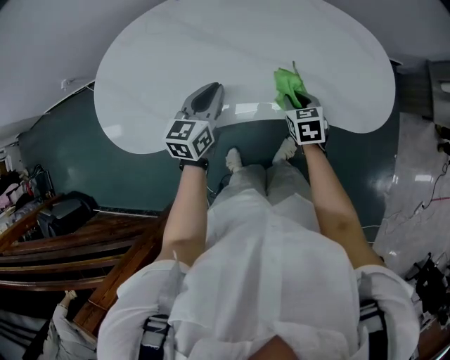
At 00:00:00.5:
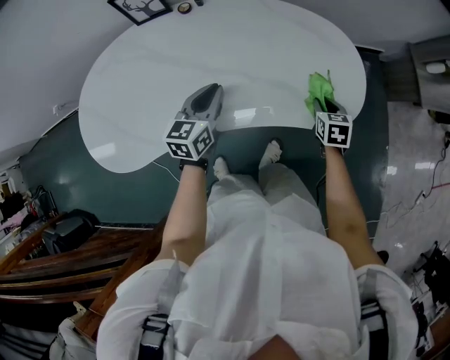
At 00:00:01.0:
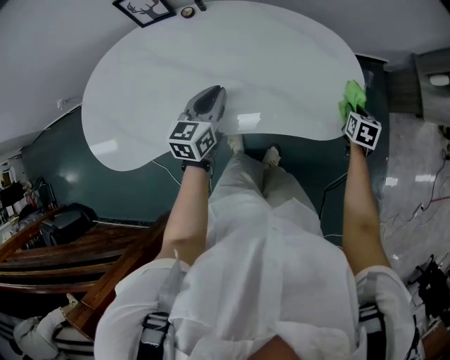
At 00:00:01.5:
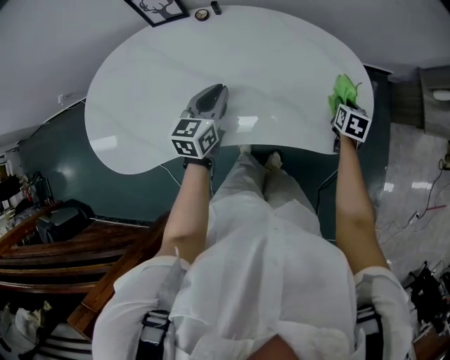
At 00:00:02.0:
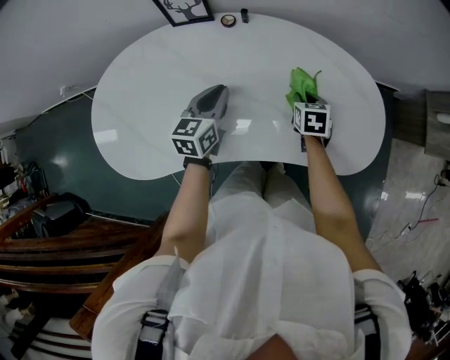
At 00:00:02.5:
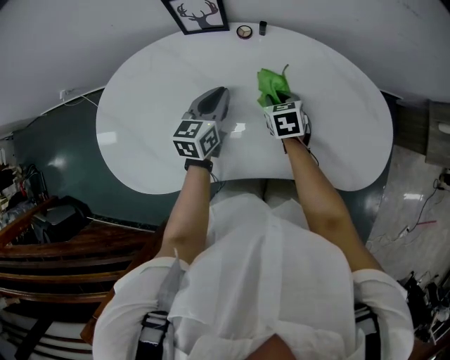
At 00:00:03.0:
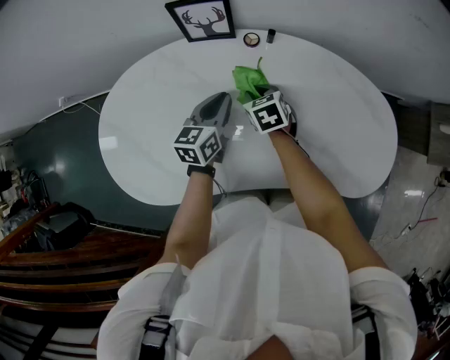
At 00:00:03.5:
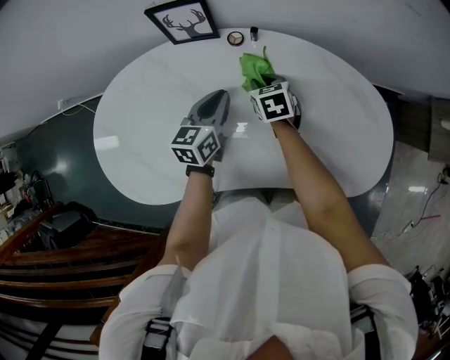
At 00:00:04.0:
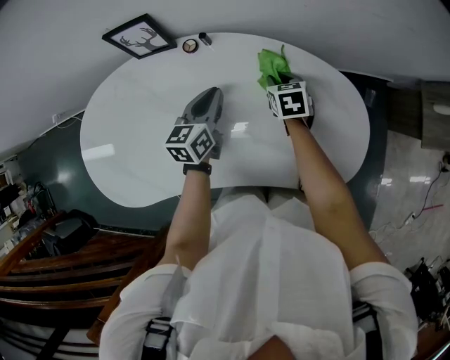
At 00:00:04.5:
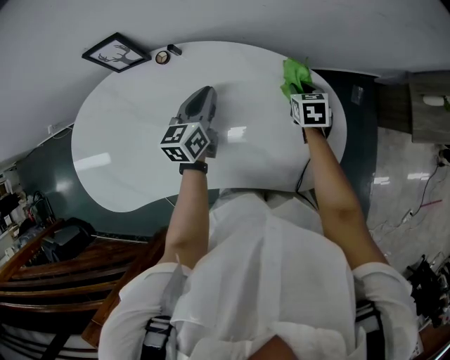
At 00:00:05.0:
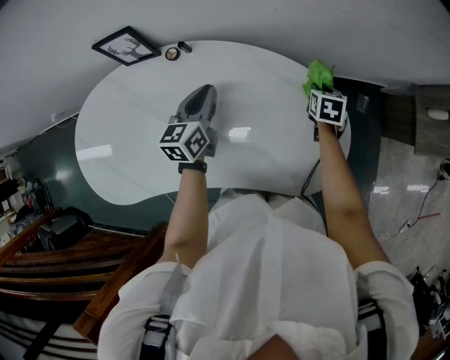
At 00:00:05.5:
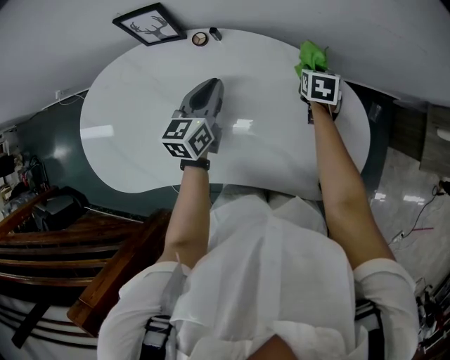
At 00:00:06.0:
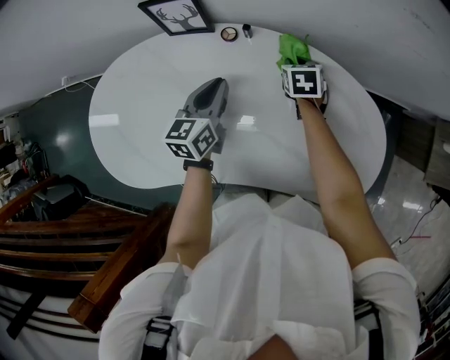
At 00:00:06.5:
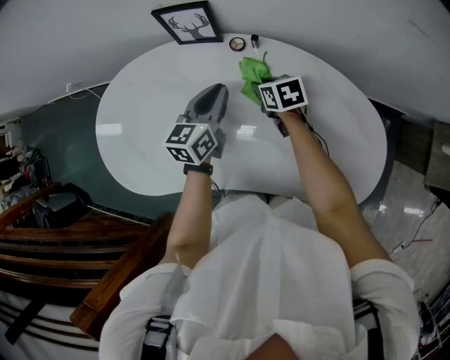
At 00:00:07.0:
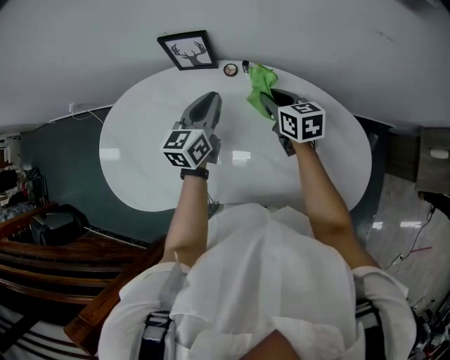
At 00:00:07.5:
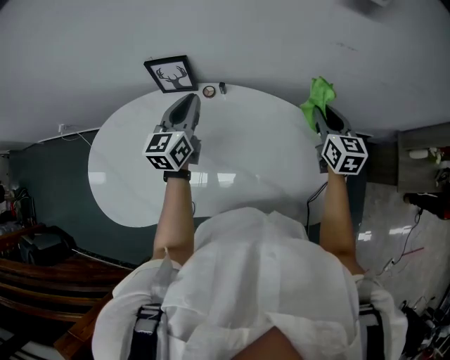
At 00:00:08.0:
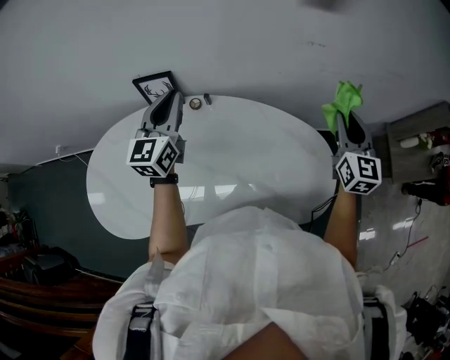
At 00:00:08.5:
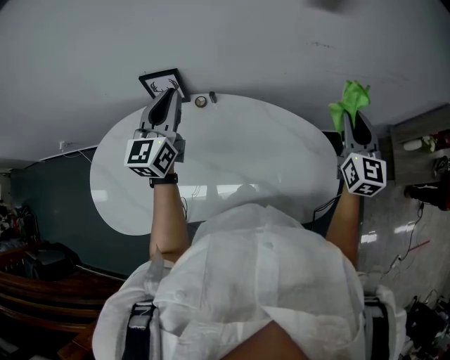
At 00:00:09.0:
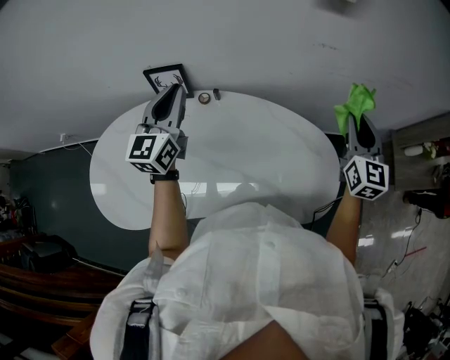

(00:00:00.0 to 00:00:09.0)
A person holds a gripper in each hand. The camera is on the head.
00:00:00.0 - 00:00:02.0: Both grippers move forward, some 15 cm. The left gripper travels to the right and back again, some 15 cm each way. The right gripper travels to the right and back again, approximately 35 cm each way.
00:00:02.0 - 00:00:04.5: Both grippers move to the right and forward, some 20 cm.
00:00:04.5 - 00:00:07.0: The right gripper shifts by about 30 cm, and turns by approximately 30 degrees; the left gripper moves some 20 cm.
00:00:07.0 - 00:00:09.0: The left gripper heads upward, covering about 15 cm, and swivels roughly 20 degrees. The right gripper heads to the right and upward, covering some 40 cm, and rotates approximately 50 degrees.

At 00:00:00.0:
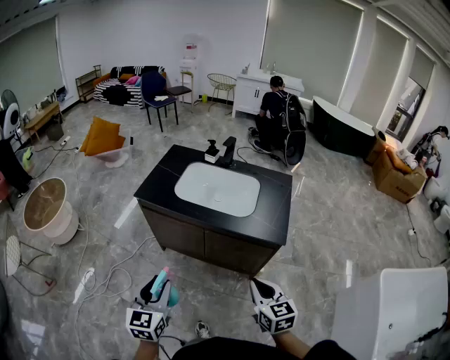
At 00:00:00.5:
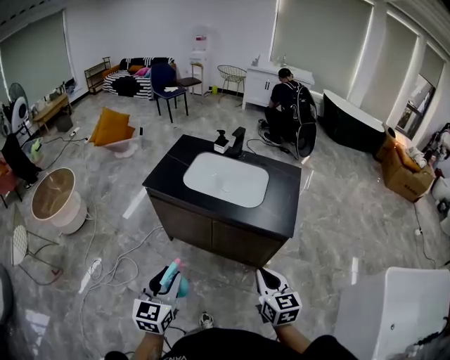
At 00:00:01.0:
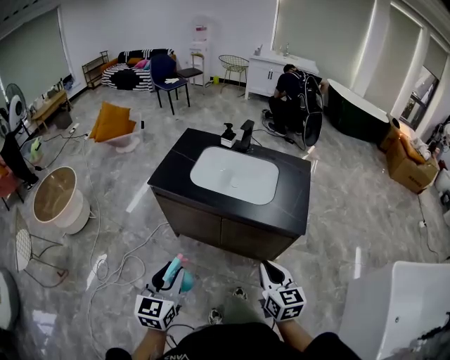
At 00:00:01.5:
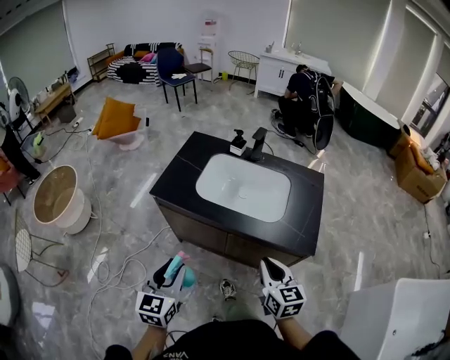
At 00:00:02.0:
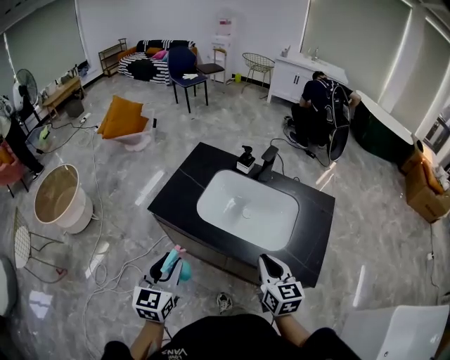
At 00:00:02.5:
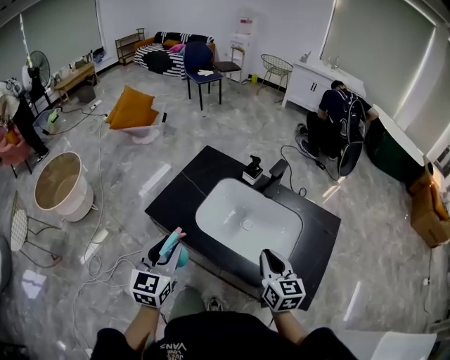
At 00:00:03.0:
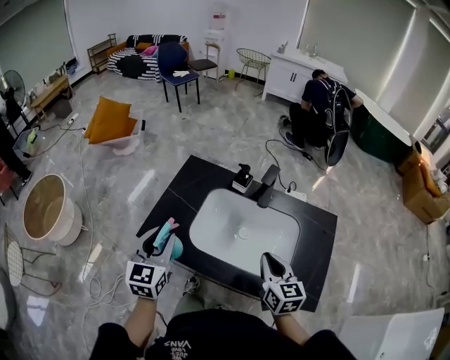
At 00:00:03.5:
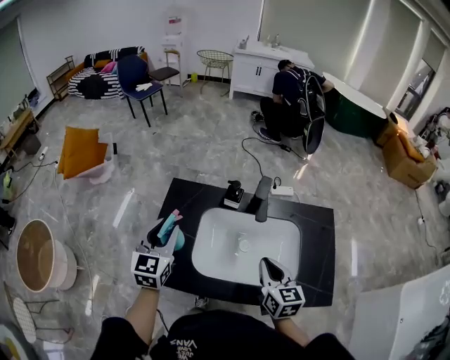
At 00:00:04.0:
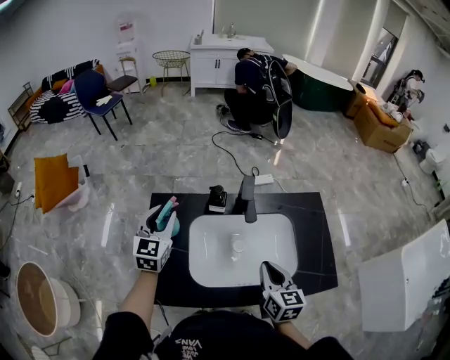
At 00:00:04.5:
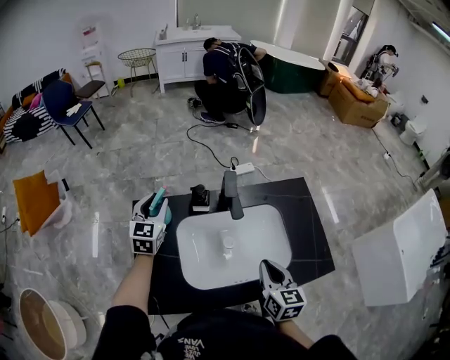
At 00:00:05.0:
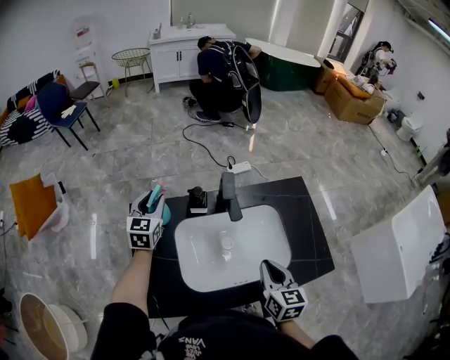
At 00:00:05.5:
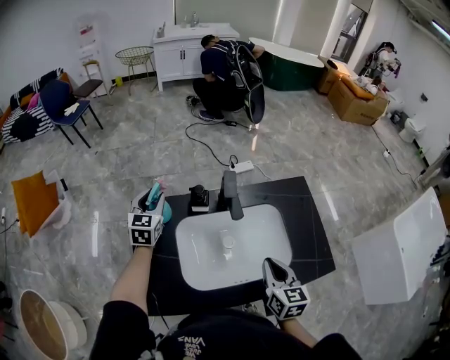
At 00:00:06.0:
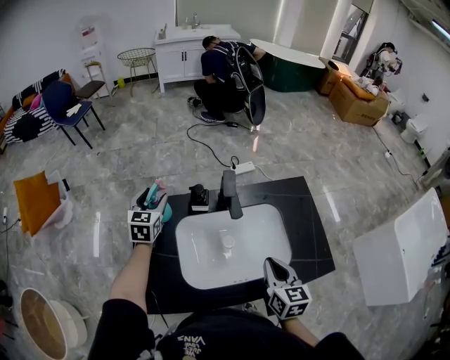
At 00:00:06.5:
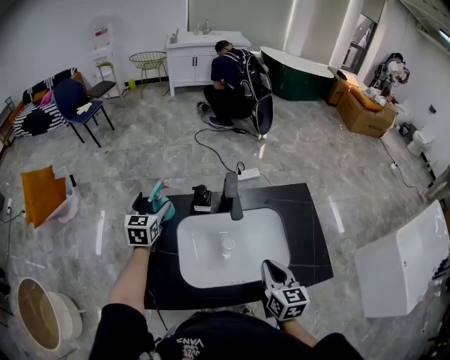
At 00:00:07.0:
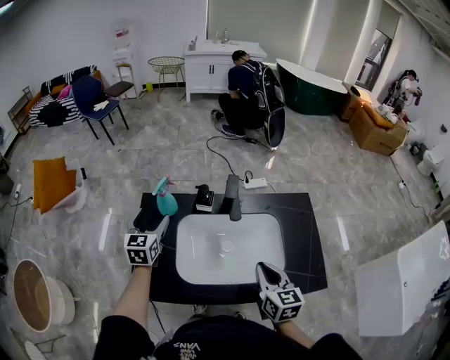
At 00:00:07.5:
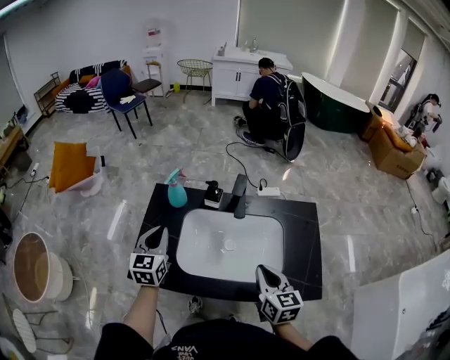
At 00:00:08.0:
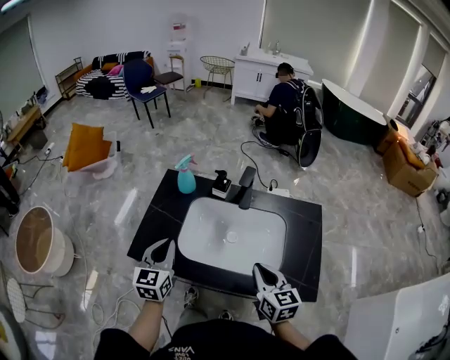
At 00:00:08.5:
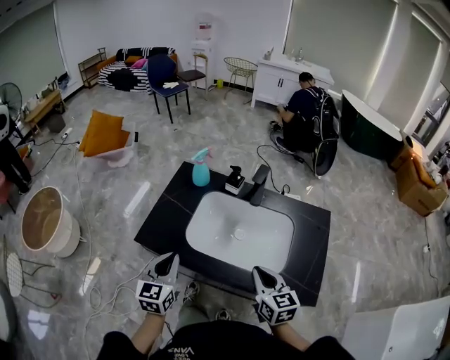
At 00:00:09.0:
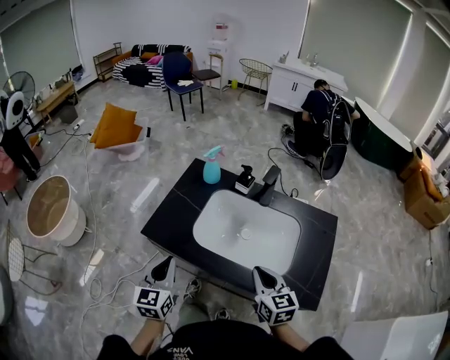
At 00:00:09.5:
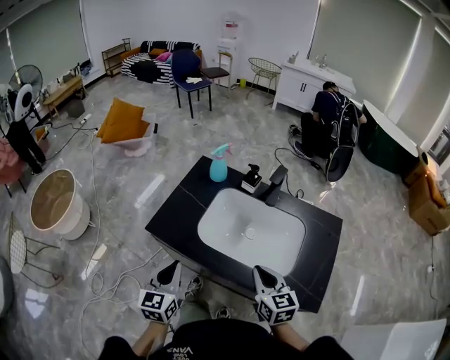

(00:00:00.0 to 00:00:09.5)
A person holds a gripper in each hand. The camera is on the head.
00:00:00.0 - 00:00:02.0: The grippers both shift forward by approximately 30 cm.
00:00:02.0 - 00:00:04.0: The left gripper ends up roughly 50 cm from where it was, and changes its angle by about 30 degrees, while the right gripper moves roughly 20 cm, and swivels approximately 30 degrees.
00:00:04.0 - 00:00:05.5: The left gripper heads forward and downward, covering about 15 cm.
00:00:05.5 - 00:00:07.5: The right gripper ends up roughly 5 cm from where it was, and swivels approximately 20 degrees. The left gripper travels backward by roughly 25 cm, and opens and closes again.
00:00:07.5 - 00:00:09.5: The left gripper moves backward, some 25 cm. The right gripper ends up approximately 5 cm from where it was, and changes its angle by about 20 degrees.

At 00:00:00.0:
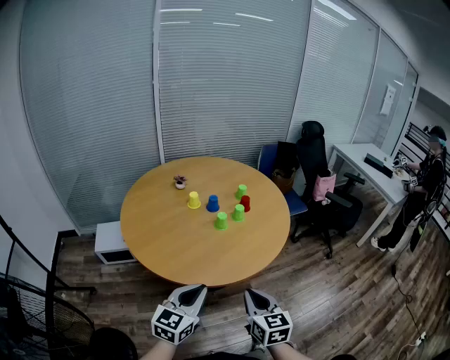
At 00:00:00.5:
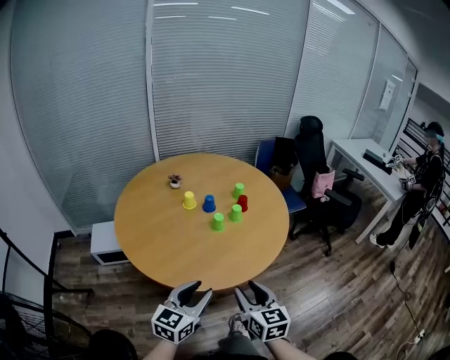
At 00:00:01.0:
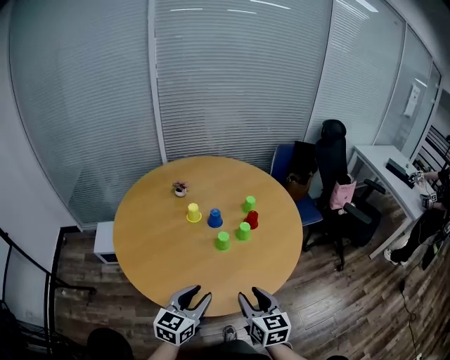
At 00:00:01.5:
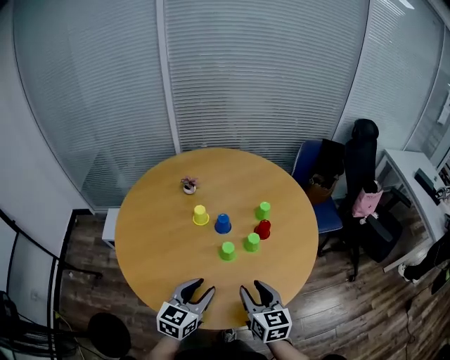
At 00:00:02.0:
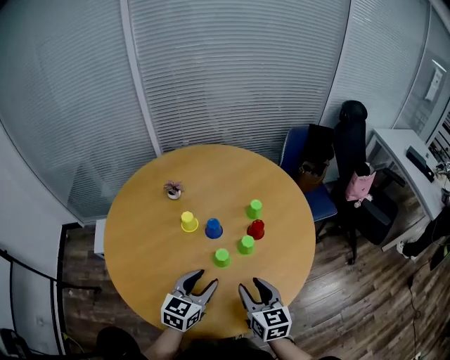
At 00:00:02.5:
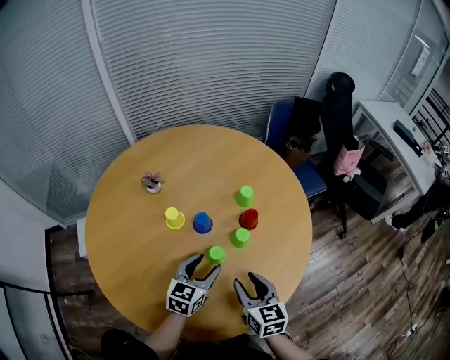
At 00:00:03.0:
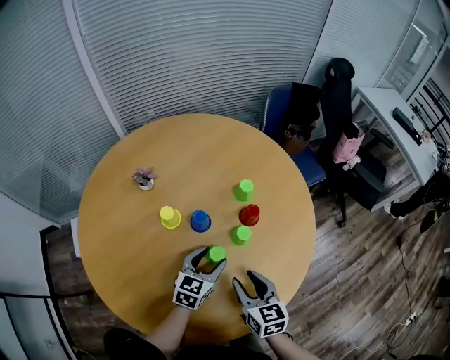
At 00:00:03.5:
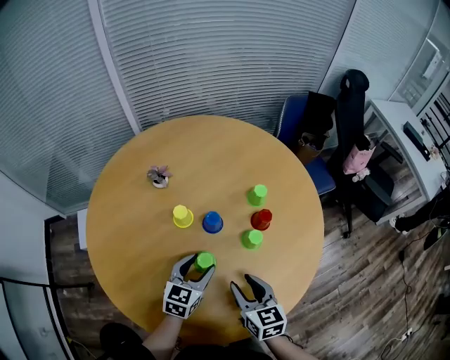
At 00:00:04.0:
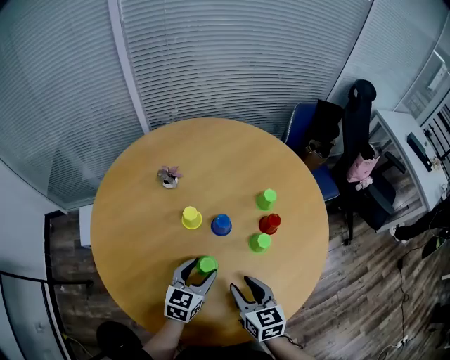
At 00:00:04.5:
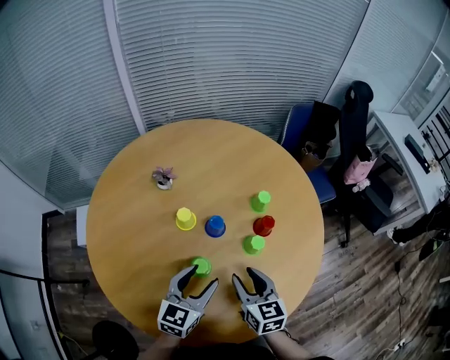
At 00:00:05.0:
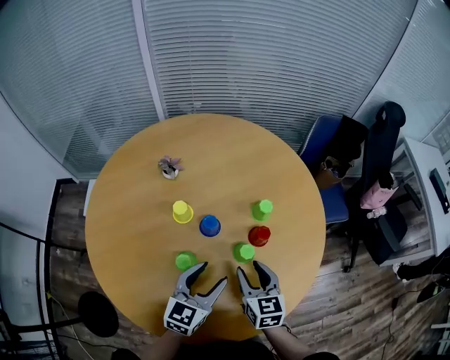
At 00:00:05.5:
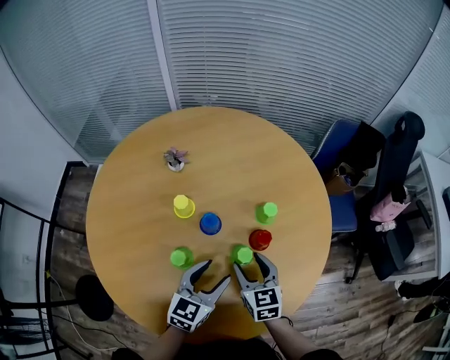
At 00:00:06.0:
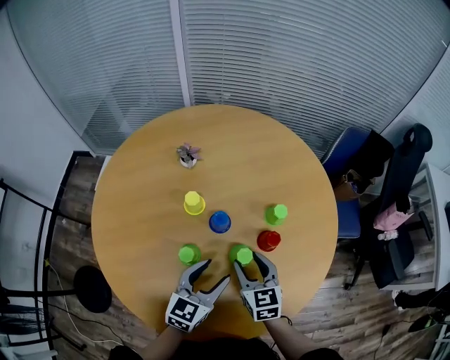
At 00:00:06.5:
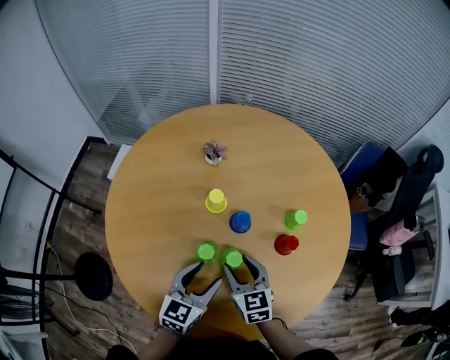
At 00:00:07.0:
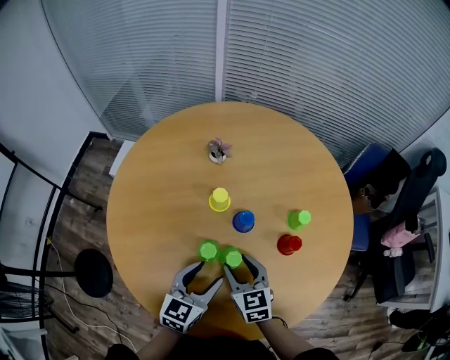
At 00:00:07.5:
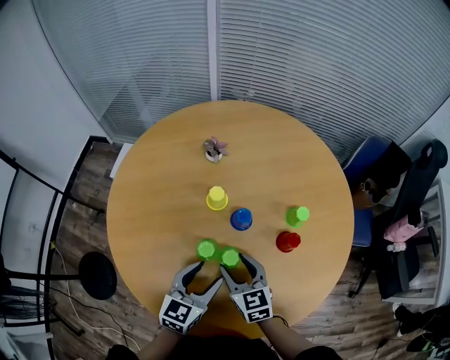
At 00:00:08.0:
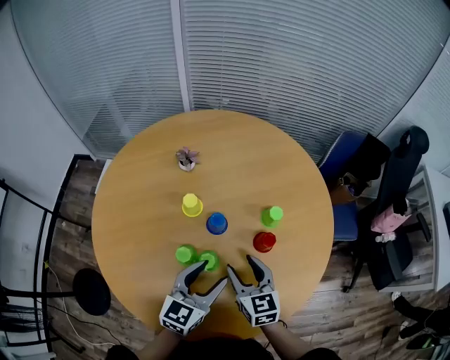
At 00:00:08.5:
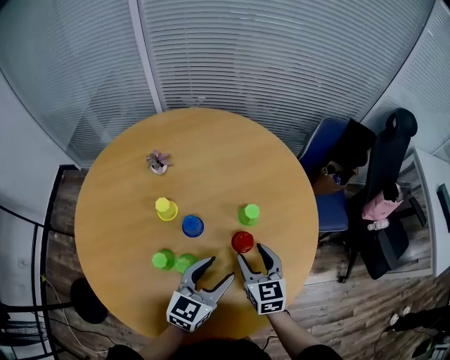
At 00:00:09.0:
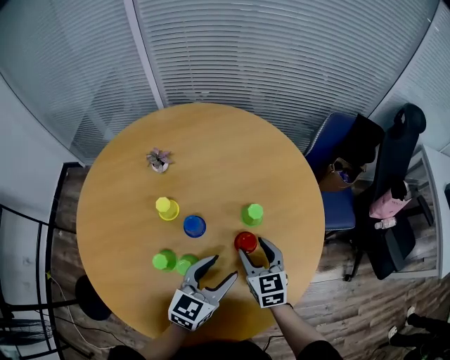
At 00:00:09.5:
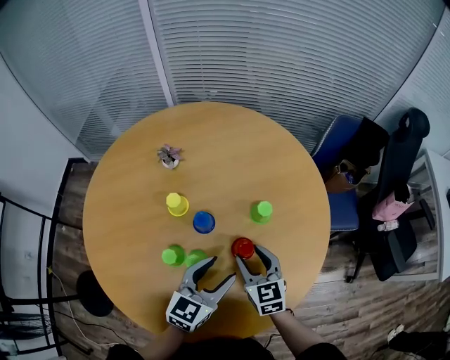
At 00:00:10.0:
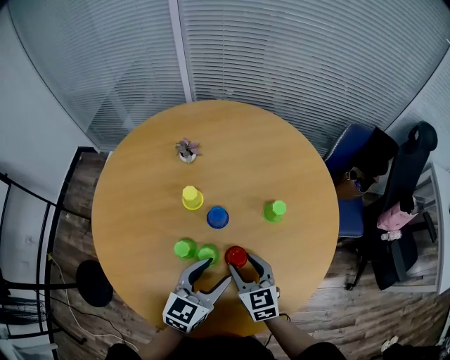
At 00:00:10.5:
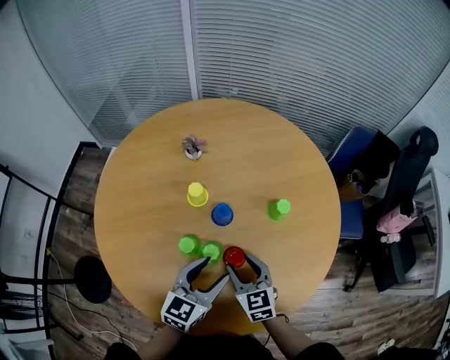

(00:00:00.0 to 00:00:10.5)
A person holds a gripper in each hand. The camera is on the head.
00:00:00.0 - 00:00:02.0: The grippers both shift forward by roughly 30 cm. The right gripper opens its fingers. Meanwhile the left gripper opens.
00:00:02.0 - 00:00:04.0: The left gripper shifts some 15 cm downward, forward and to the left; the right gripper shifts roughly 10 cm to the left and downward.
00:00:04.0 - 00:00:06.5: The left gripper rotates about 30 degrees. The right gripper turns by approximately 30 degrees.
00:00:06.5 - 00:00:08.5: The two grippers go some 15 cm to the right.
00:00:08.5 - 00:00:10.5: The left gripper heads to the left, covering roughly 10 cm. Meanwhile the right gripper travels to the left and backward by about 15 cm.
